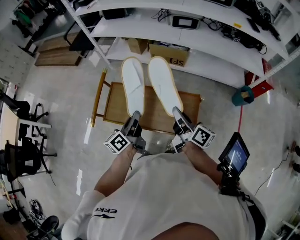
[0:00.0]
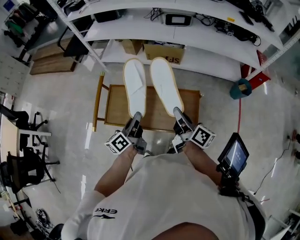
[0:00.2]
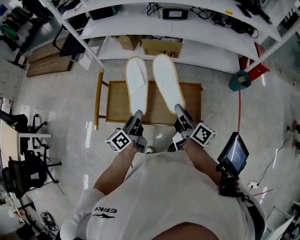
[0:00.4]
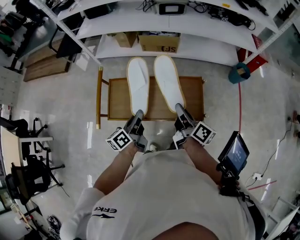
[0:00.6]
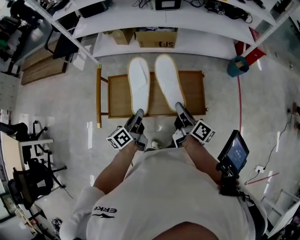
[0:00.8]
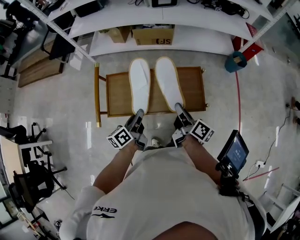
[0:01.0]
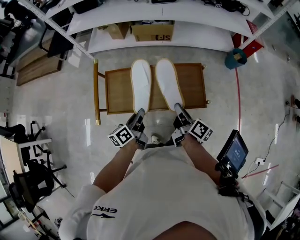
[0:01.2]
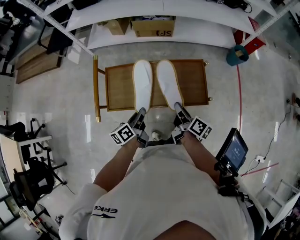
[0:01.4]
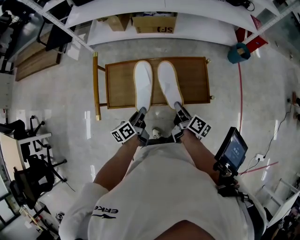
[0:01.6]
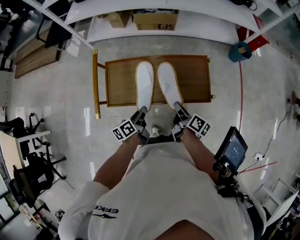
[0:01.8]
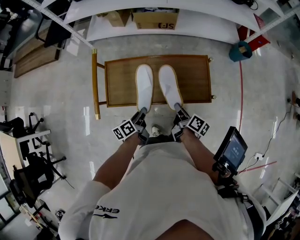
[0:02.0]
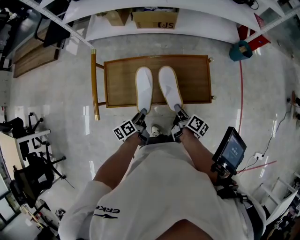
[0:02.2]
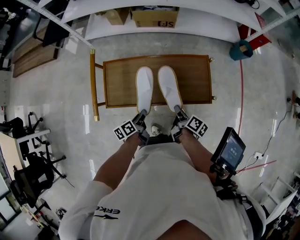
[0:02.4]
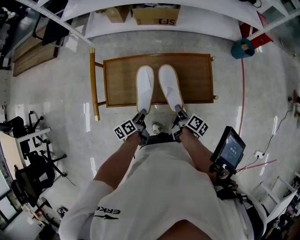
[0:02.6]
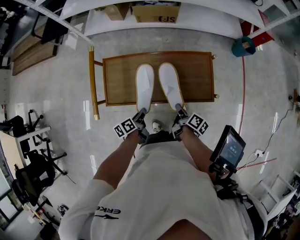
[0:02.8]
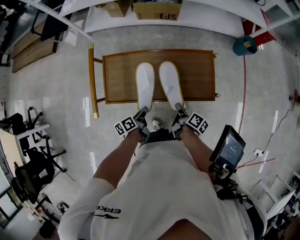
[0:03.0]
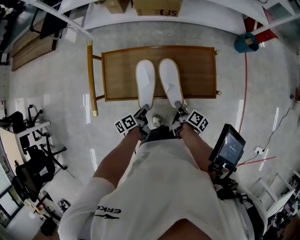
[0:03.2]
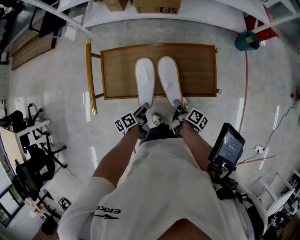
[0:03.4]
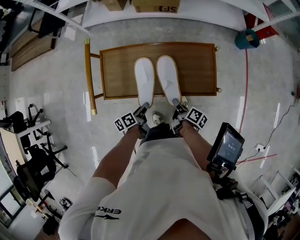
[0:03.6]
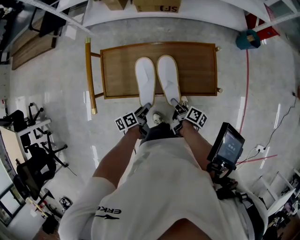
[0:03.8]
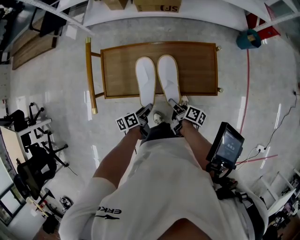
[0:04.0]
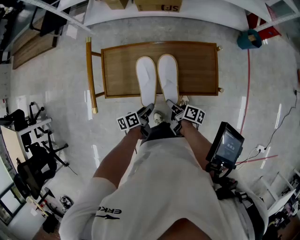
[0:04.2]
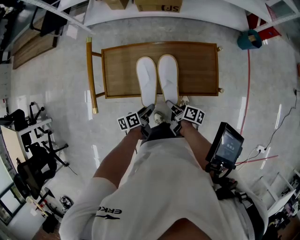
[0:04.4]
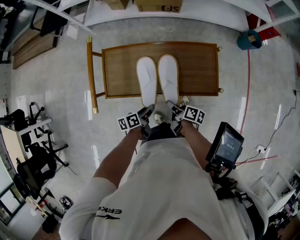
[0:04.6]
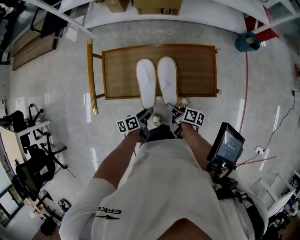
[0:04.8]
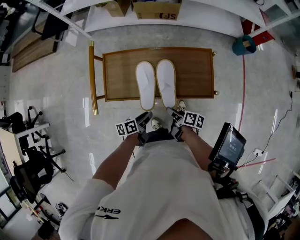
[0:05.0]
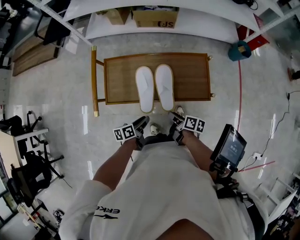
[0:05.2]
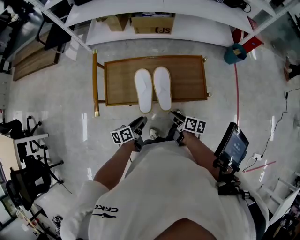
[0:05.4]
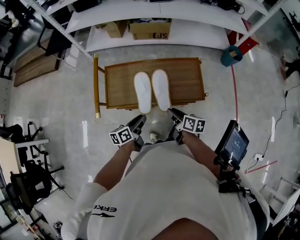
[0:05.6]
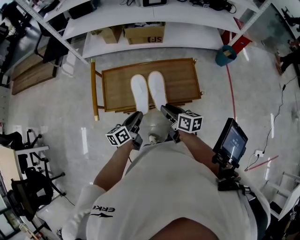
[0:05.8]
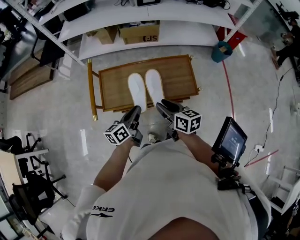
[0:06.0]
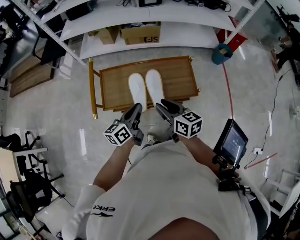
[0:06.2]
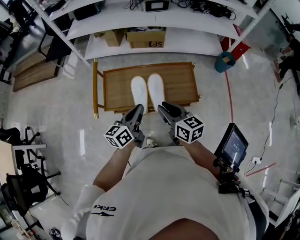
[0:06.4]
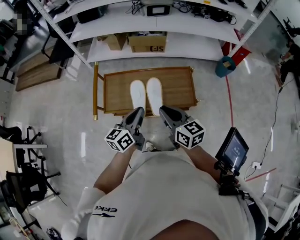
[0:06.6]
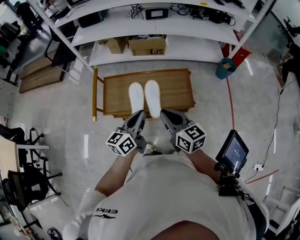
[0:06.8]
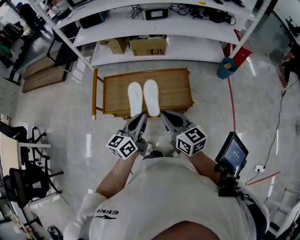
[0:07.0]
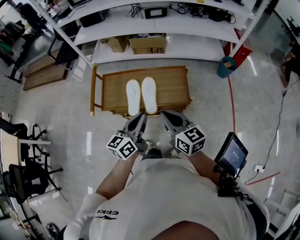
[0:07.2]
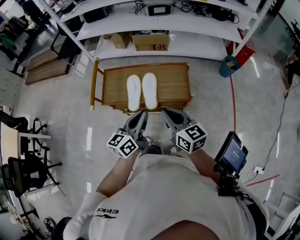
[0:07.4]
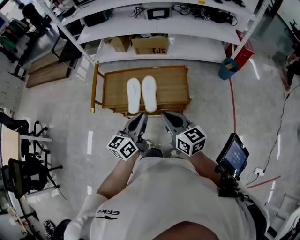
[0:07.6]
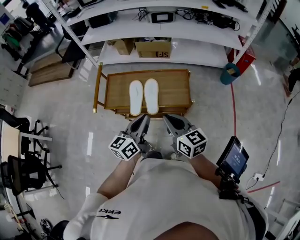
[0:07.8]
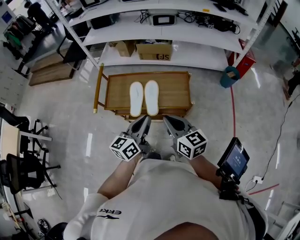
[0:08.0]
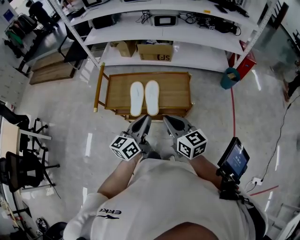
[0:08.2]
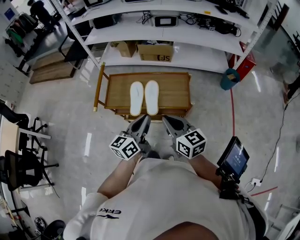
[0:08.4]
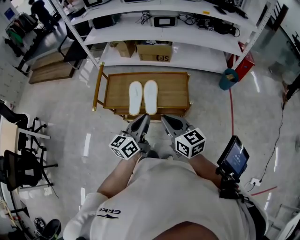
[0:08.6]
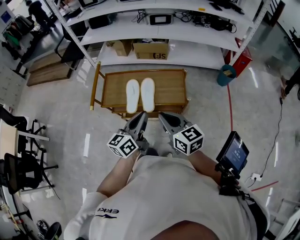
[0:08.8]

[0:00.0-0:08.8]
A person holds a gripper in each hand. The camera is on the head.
0:00.0 to 0:01.4: Both grippers move downward and backward, some 15 cm. The left gripper changes its angle by about 30 degrees, while the right gripper turns by about 30 degrees.
0:01.4 to 0:03.0: Both grippers move downward, approximately 15 cm. The right gripper swivels approximately 20 degrees. The left gripper changes its angle by approximately 20 degrees.
0:03.0 to 0:04.4: The right gripper moves to the left, roughly 5 cm, and opens its fingers, while the left gripper opens.
0:04.4 to 0:05.8: The grippers both shift upward by approximately 15 cm. The left gripper turns by about 30 degrees. Meanwhile the right gripper rotates some 40 degrees.
0:05.8 to 0:07.4: The right gripper heads upward, backward and to the right, covering roughly 20 cm, swivels about 30 degrees, and closes its fingers. Meanwhile the left gripper is displaced upward, to the right and backward by some 25 cm, and swivels approximately 30 degrees.
0:07.4 to 0:08.8: The grippers stay close to where they were, moving slightly.

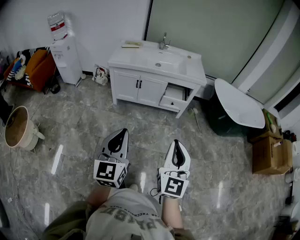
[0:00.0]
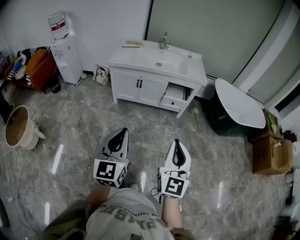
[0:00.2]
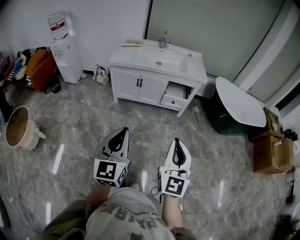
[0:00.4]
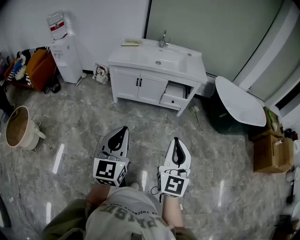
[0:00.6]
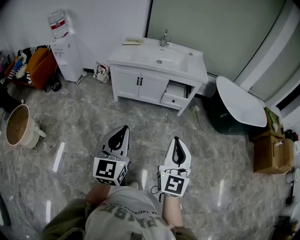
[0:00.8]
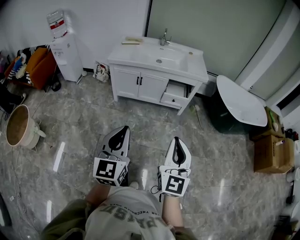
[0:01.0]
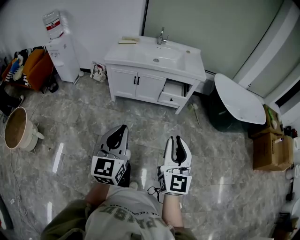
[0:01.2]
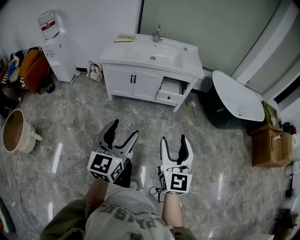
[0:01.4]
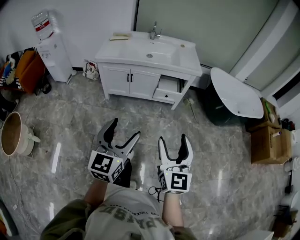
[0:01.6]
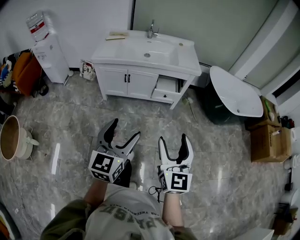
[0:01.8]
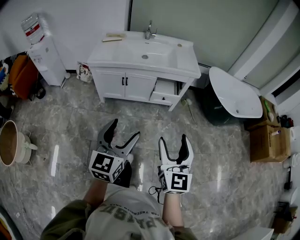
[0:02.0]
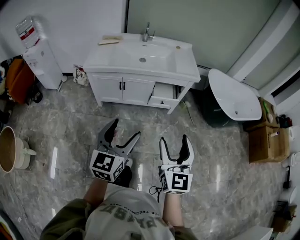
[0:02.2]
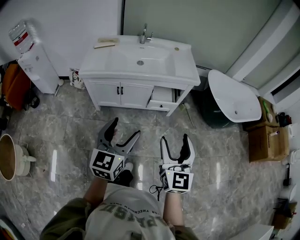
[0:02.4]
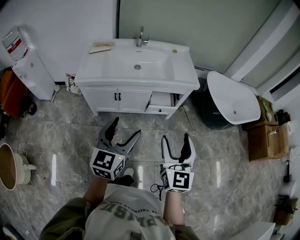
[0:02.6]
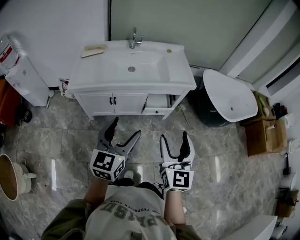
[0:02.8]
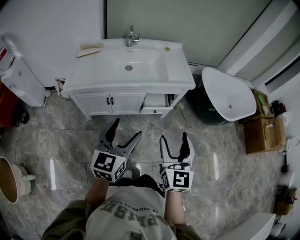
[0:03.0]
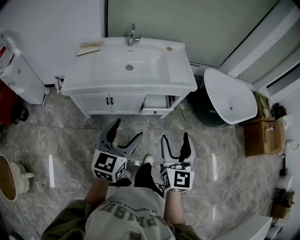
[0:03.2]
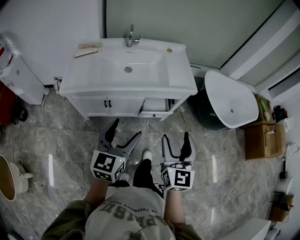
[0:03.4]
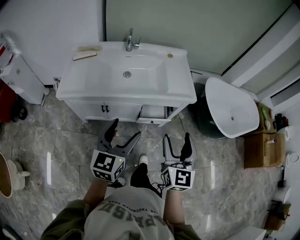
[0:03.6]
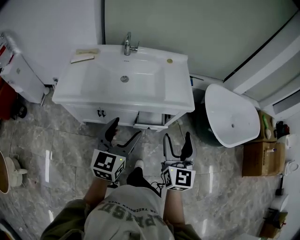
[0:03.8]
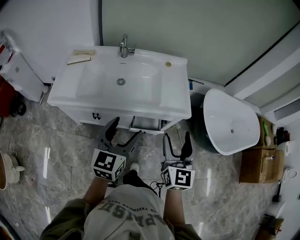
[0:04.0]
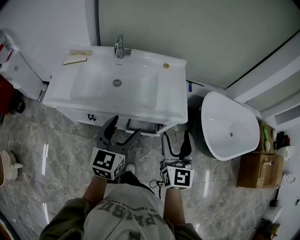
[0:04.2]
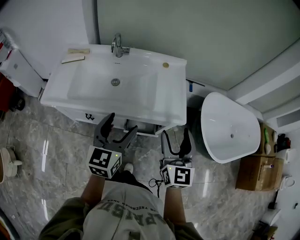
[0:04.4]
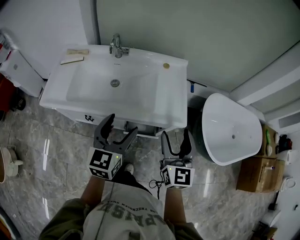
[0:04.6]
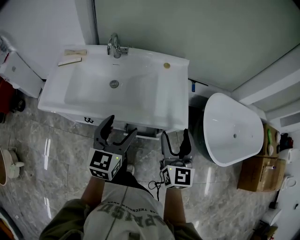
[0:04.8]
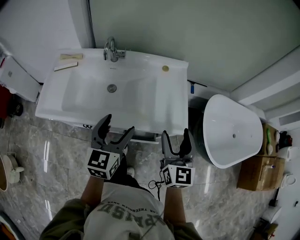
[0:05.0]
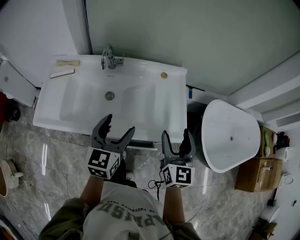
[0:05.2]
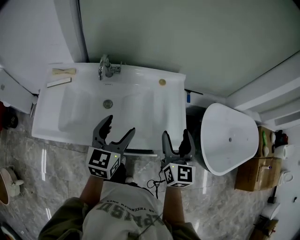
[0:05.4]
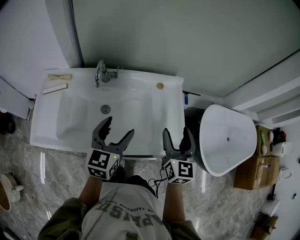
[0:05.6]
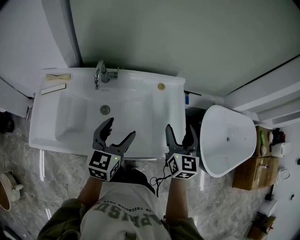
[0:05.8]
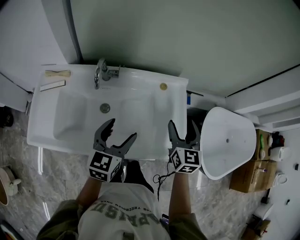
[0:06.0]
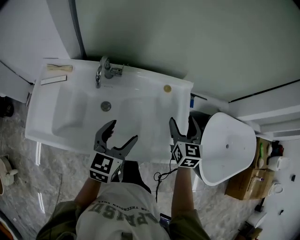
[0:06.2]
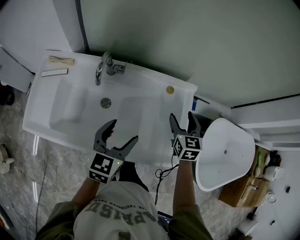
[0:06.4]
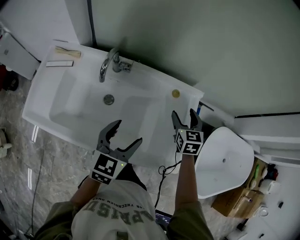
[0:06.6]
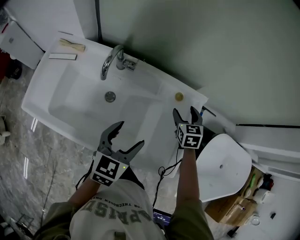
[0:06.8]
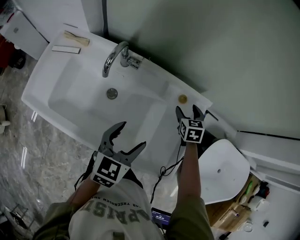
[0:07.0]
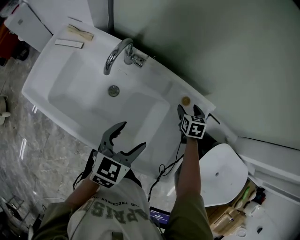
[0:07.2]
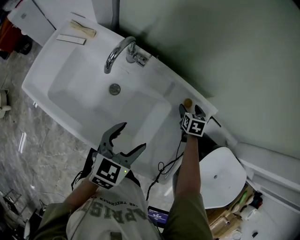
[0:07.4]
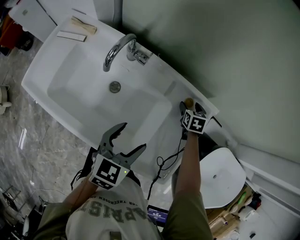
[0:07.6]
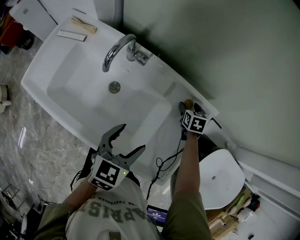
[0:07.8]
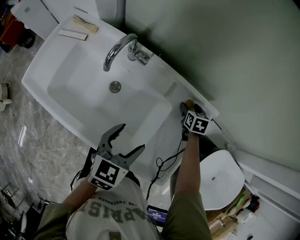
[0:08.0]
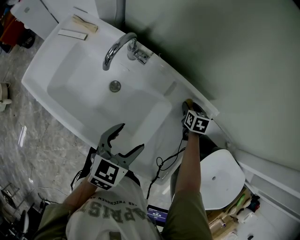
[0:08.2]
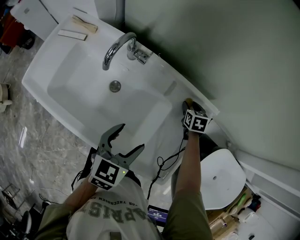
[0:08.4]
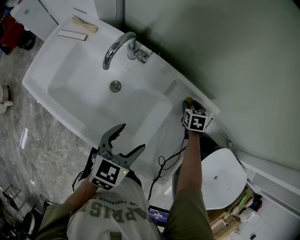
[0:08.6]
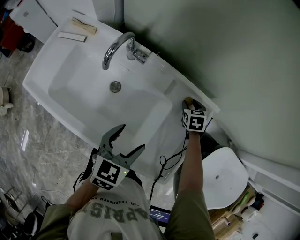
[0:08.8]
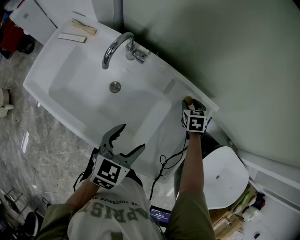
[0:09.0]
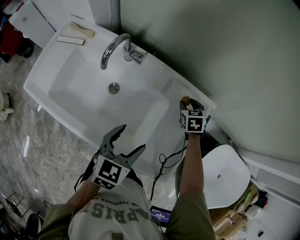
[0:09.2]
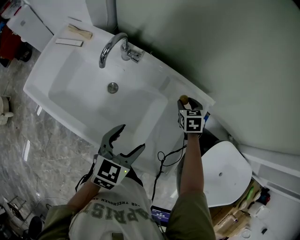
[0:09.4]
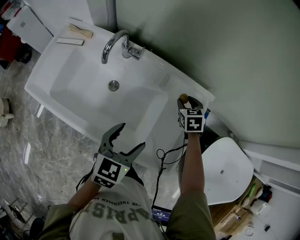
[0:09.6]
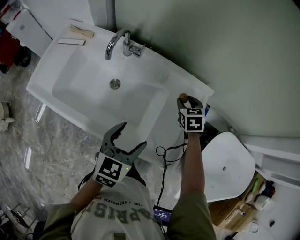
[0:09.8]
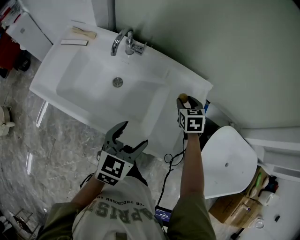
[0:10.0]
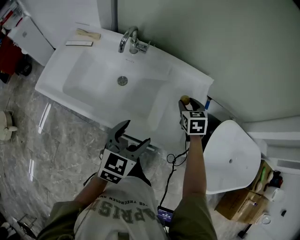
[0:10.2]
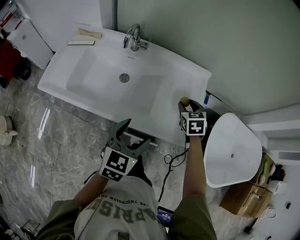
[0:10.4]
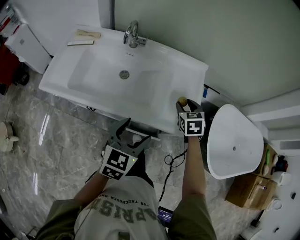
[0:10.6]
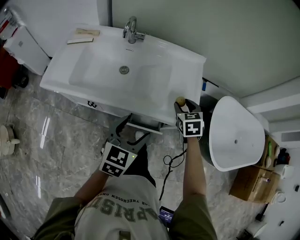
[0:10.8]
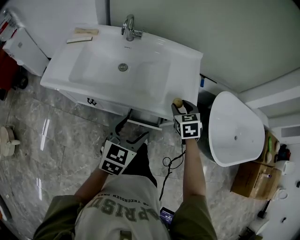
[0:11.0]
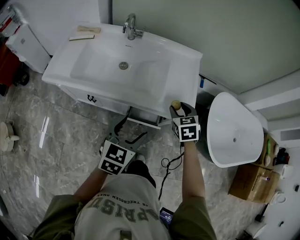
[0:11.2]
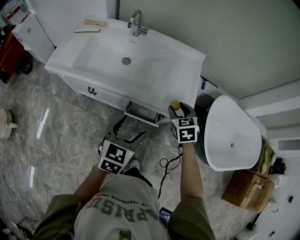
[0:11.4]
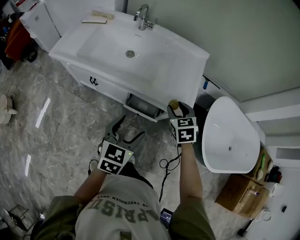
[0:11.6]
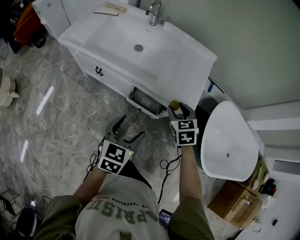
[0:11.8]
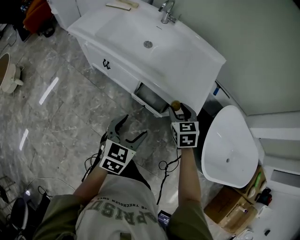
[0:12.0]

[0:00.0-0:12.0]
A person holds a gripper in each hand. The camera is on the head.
0:00.0 to 0:01.6: The two grippers go some 5 cm forward. The left gripper opens its fingers, while the right gripper opens up.
0:01.6 to 0:03.0: Both grippers move forward, roughly 30 cm.
0:03.0 to 0:04.4: The two grippers go approximately 30 cm forward.
0:04.4 to 0:06.0: Both grippers travel together forward, about 25 cm.
0:06.0 to 0:07.6: The right gripper is displaced downward and forward by some 35 cm, and tilts its fingers some 40 degrees downward; the left gripper moves downward and to the right, roughly 10 cm.
0:07.6 to 0:09.0: The right gripper closes.
0:09.0 to 0:10.4: The right gripper travels backward and upward by about 25 cm. Meanwhile the left gripper travels backward by about 15 cm.
0:10.4 to 0:12.0: Both grippers travel together backward, some 25 cm.

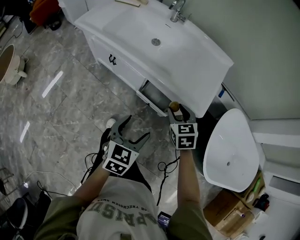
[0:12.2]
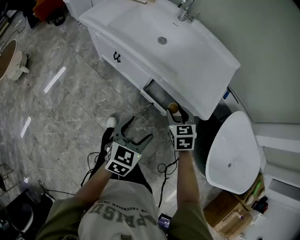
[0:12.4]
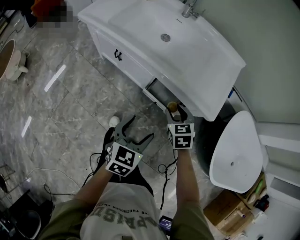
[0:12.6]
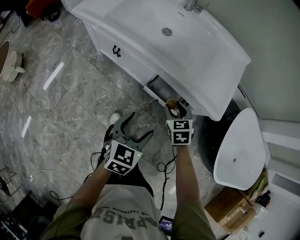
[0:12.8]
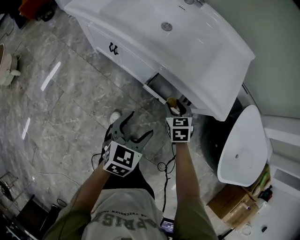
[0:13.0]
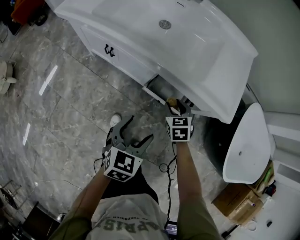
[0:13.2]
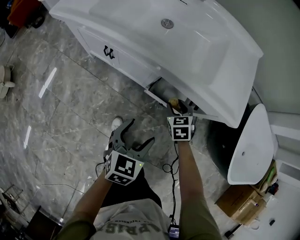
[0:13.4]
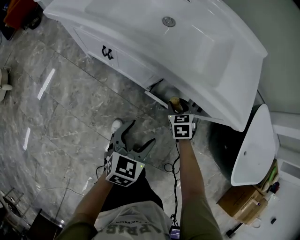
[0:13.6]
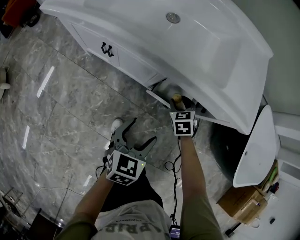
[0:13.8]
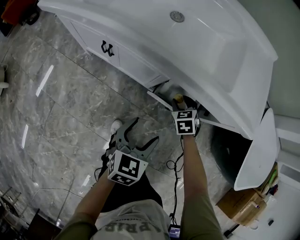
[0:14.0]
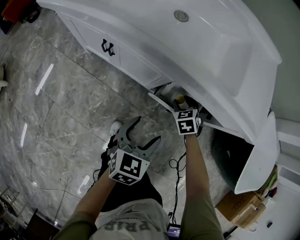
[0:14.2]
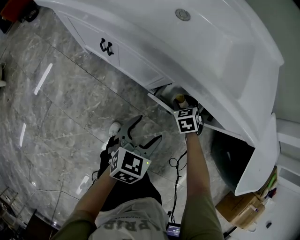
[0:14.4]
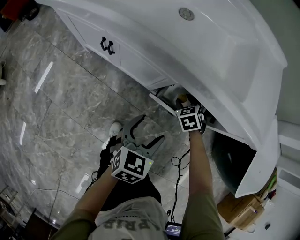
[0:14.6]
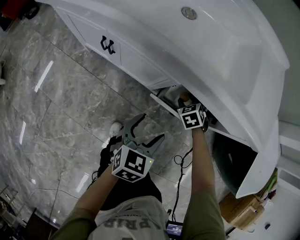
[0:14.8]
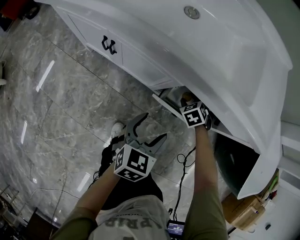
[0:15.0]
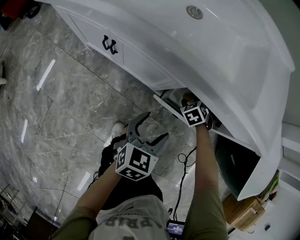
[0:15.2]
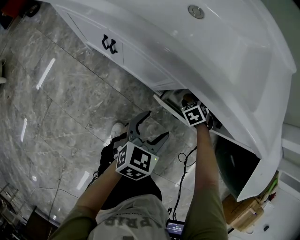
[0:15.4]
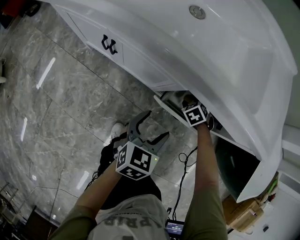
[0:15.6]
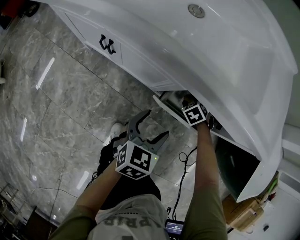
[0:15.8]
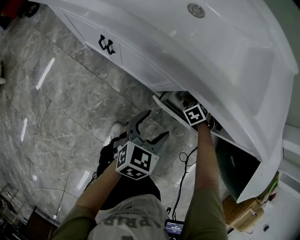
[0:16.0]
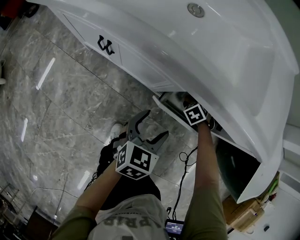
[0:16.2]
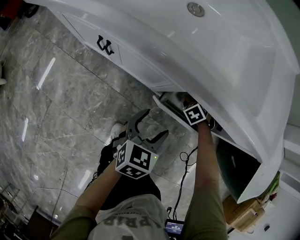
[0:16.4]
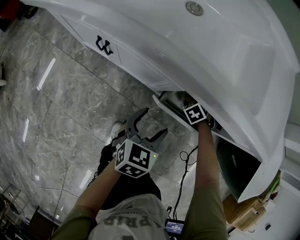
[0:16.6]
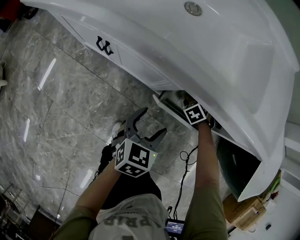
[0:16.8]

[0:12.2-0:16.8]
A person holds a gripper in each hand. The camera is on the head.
0:12.2 to 0:13.8: Both grippers move downward, roughly 25 cm.
0:13.8 to 0:15.2: The two grippers go roughly 15 cm downward and forward. The right gripper turns by roughly 30 degrees.
0:15.2 to 0:16.8: The grippers stay close to where they were, moving slightly.
